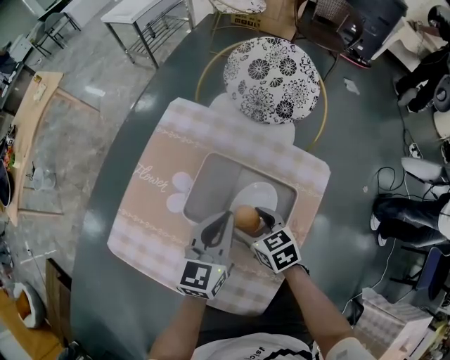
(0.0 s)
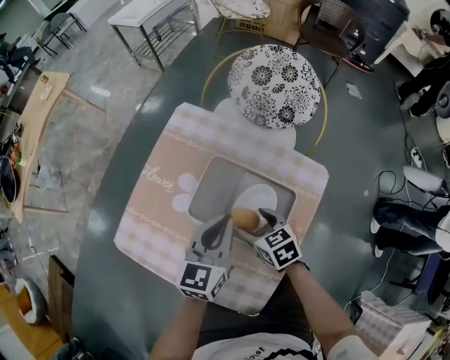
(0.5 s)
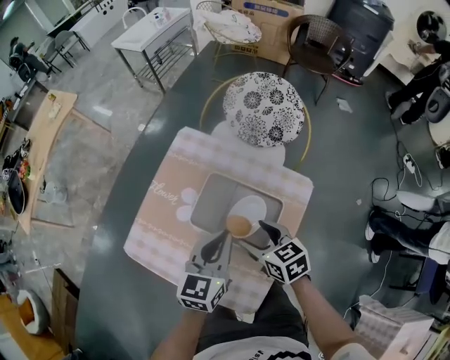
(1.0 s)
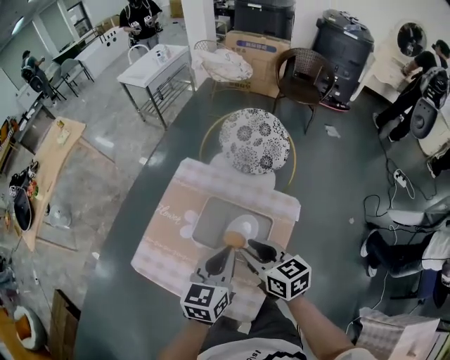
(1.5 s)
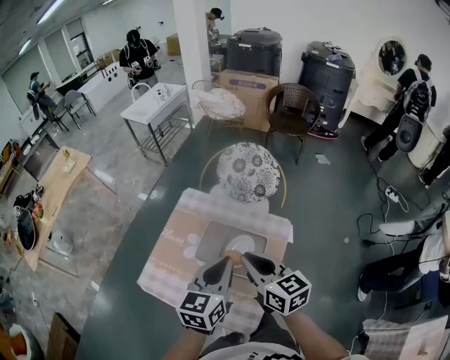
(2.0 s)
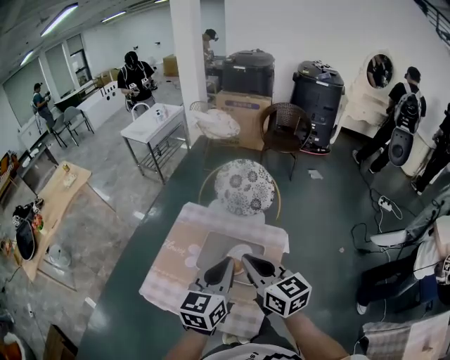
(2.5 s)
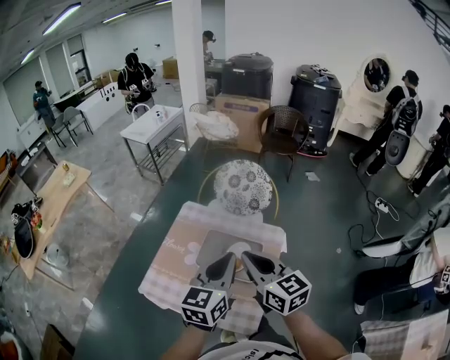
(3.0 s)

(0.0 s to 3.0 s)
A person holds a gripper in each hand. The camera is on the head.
0.0 s - 1.5 s: The grippers both shift upward by roughly 20 cm. The right gripper swivels about 20 degrees, and closes its fingers.
1.5 s - 3.0 s: The grippers both shift upward by some 15 cm. The right gripper rotates some 20 degrees, and closes its fingers.

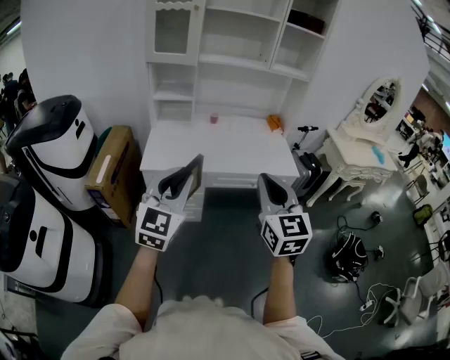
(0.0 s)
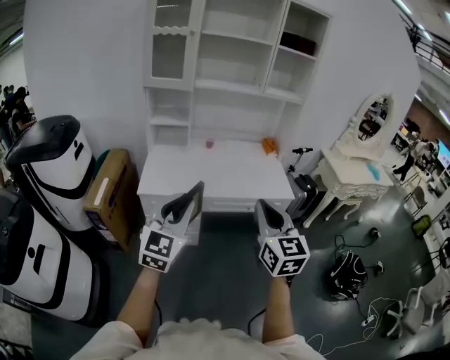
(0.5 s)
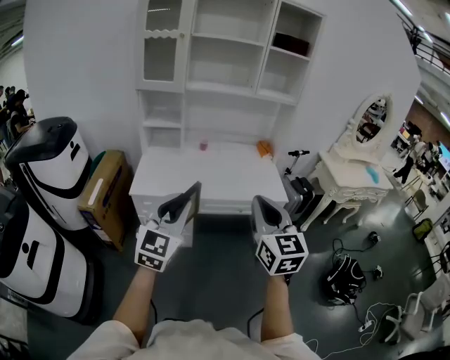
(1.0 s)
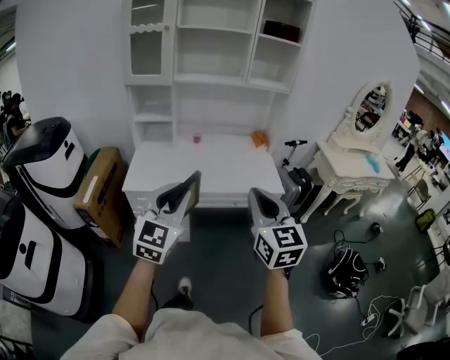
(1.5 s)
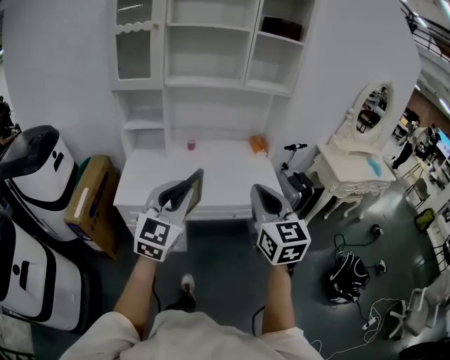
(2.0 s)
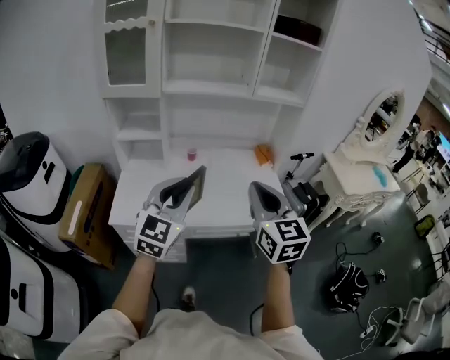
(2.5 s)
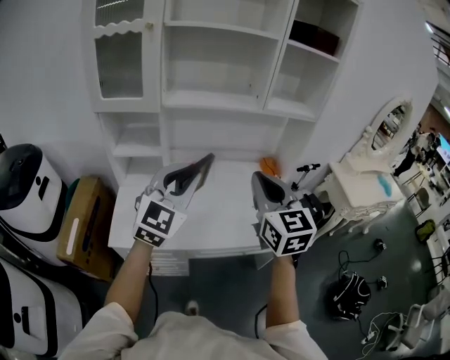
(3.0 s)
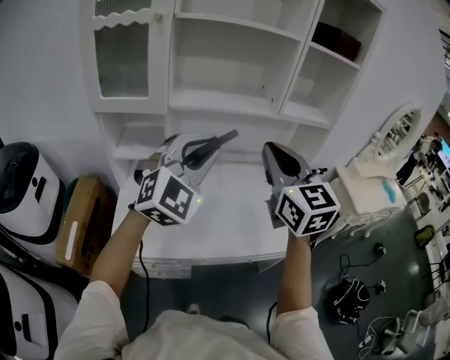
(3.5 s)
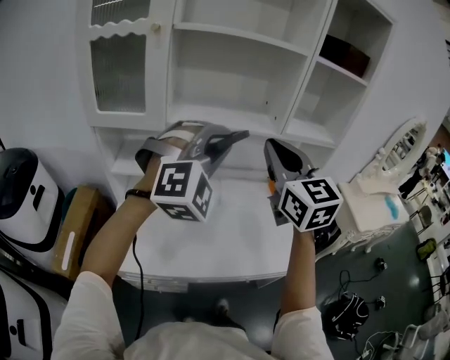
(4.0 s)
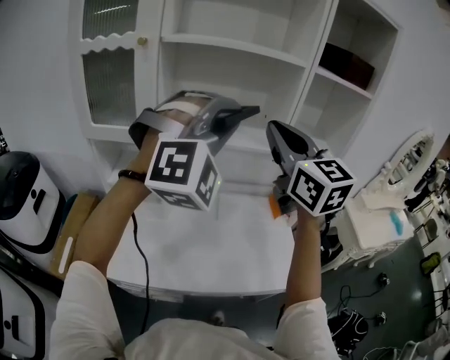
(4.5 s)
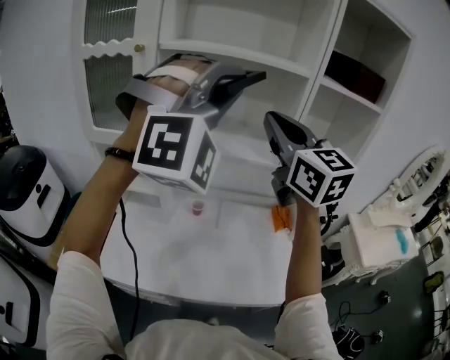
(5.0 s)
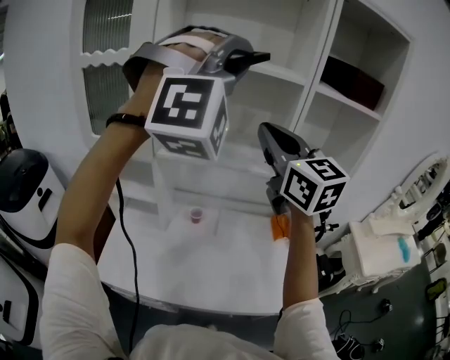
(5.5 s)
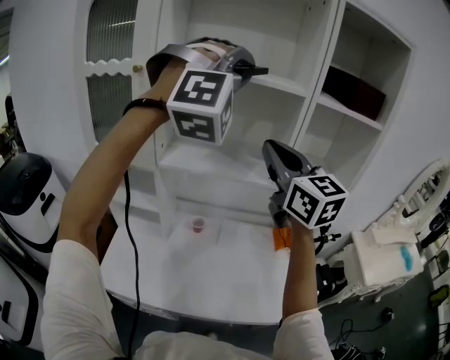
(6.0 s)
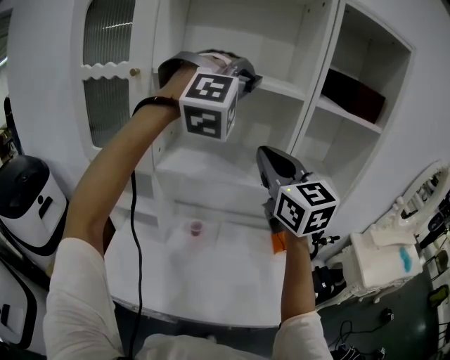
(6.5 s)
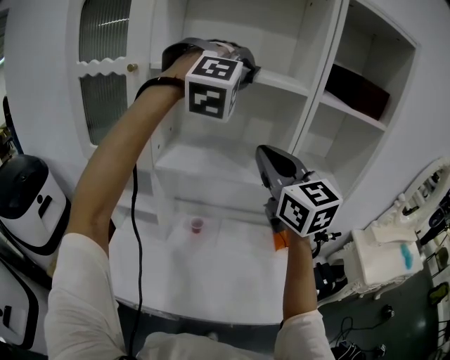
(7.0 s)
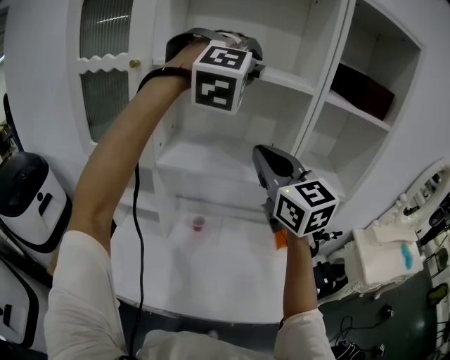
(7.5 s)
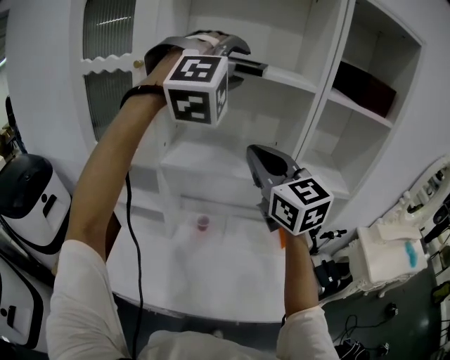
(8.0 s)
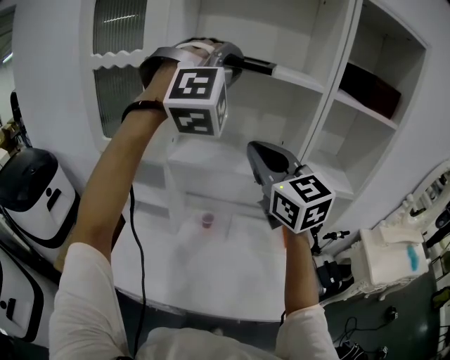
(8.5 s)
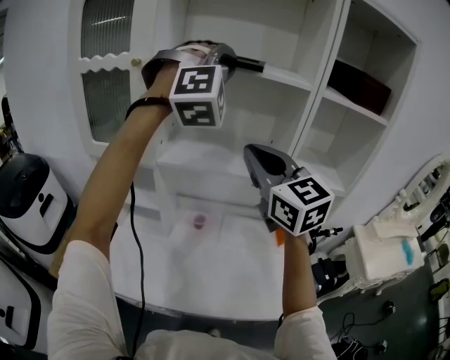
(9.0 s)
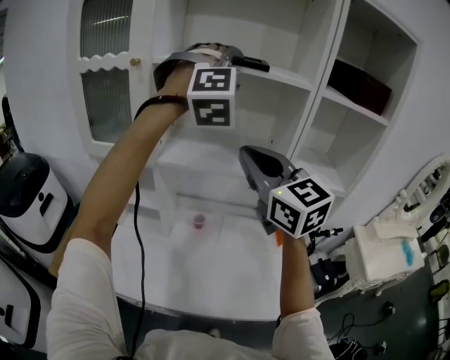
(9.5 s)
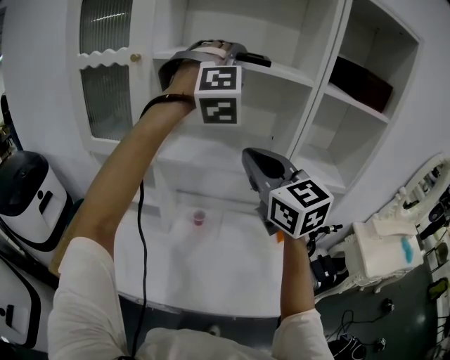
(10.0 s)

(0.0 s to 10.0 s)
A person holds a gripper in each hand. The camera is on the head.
0.0 s - 2.0 s: Both grippers move forward and to the right, about 20 cm.
2.0 s - 4.0 s: Both grippers are carried forward, about 40 cm. The left gripper rotates around the line of its fingers by roughly 50 degrees, clockwise from behind.
4.0 s - 6.0 s: The right gripper is displaced forward, upward and to the right by some 15 cm, while the left gripper shifts about 25 cm upward and forward, and swivels about 30 degrees.
6.0 s - 8.0 s: The left gripper ends up approximately 5 cm from where it was, and opens. The right gripper moves to the left, roughly 5 cm.
8.0 s - 10.0 s: The left gripper moves some 5 cm, and closes and opens again.

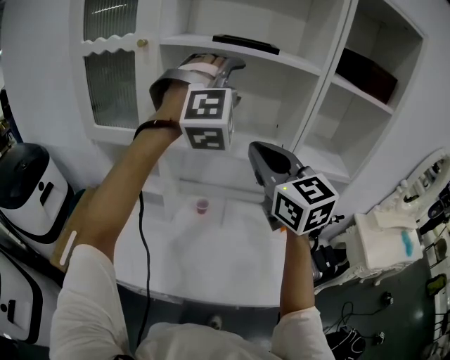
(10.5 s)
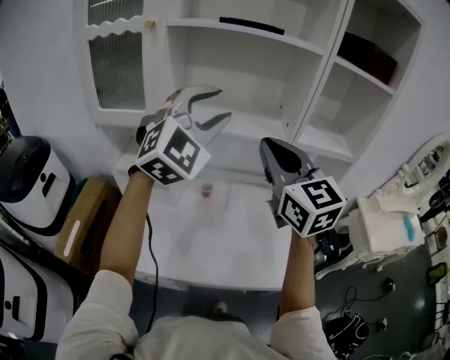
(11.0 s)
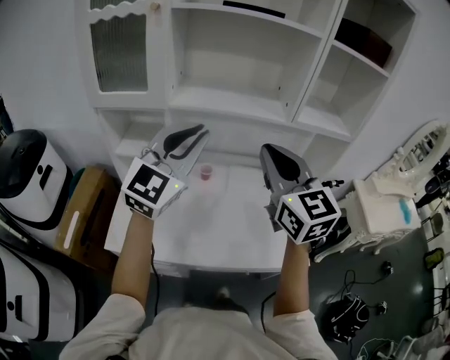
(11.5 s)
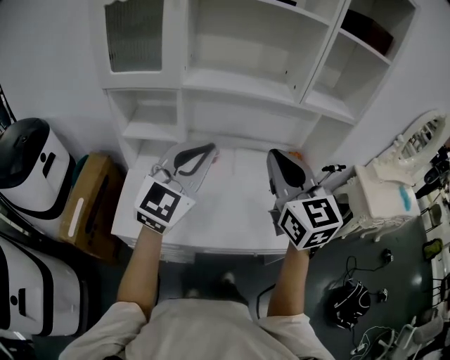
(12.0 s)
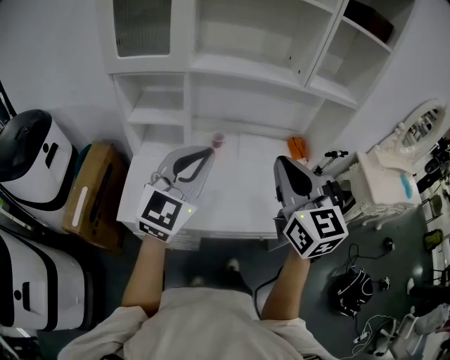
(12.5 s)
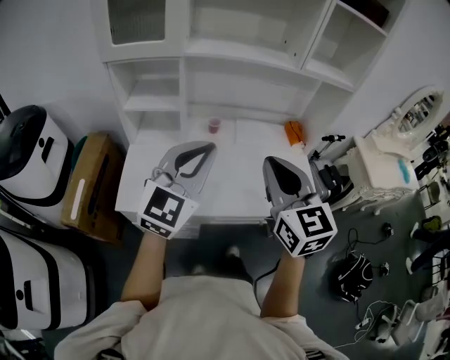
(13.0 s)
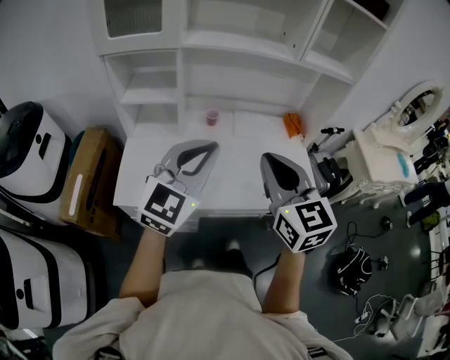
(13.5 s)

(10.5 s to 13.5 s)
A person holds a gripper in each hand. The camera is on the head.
10.5 s - 12.0 s: The left gripper moves backward, downward and to the left, about 35 cm, twists roughly 60 degrees counterclockwise, seen from behind, and closes. The right gripper is displaced backward and downward by approximately 20 cm.
12.0 s - 13.5 s: Both grippers travel together backward and downward, approximately 10 cm.

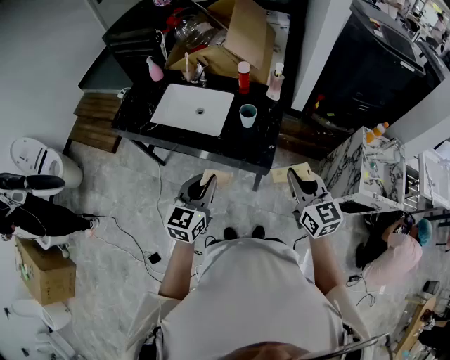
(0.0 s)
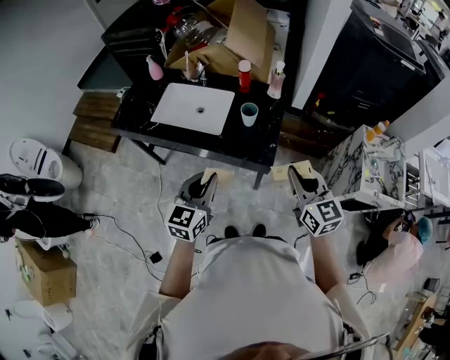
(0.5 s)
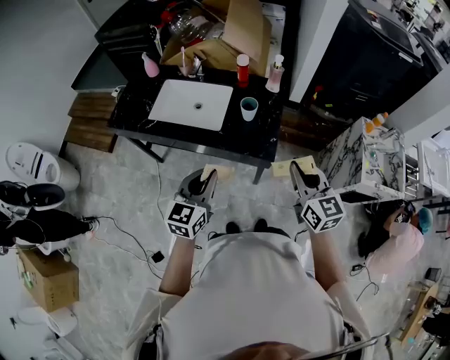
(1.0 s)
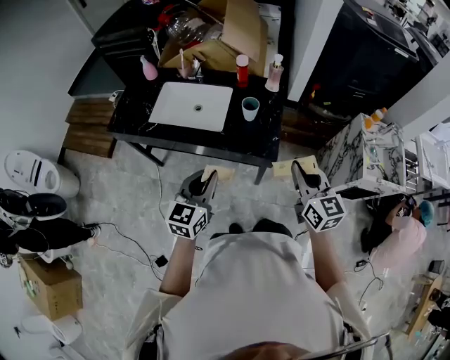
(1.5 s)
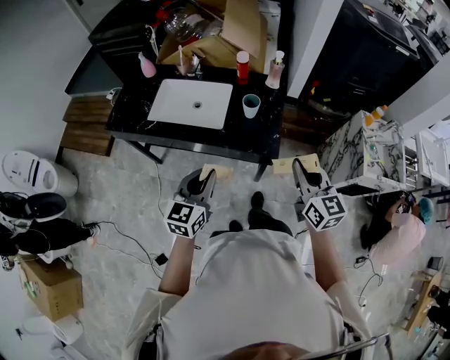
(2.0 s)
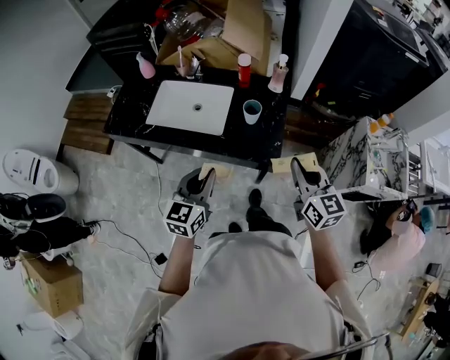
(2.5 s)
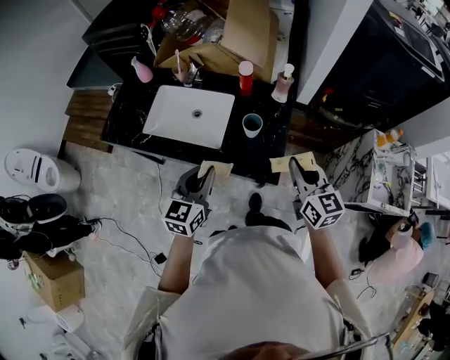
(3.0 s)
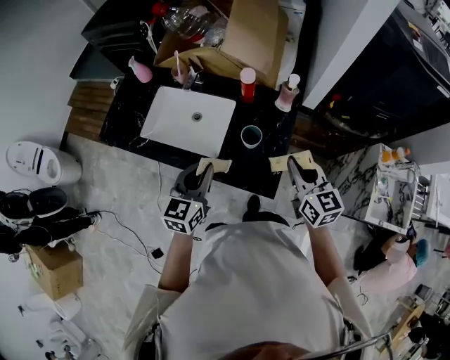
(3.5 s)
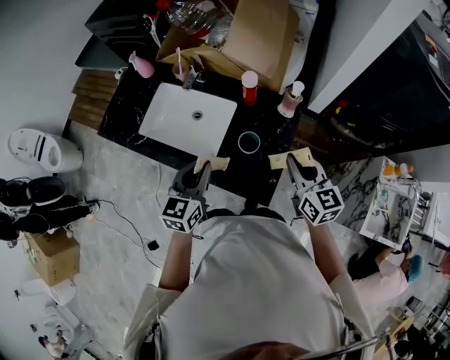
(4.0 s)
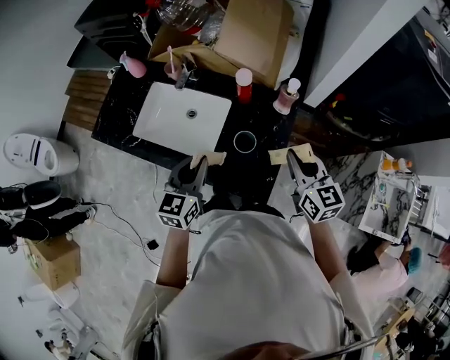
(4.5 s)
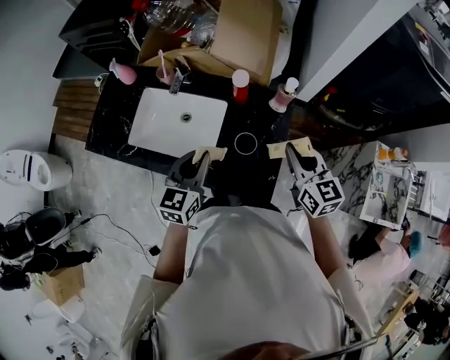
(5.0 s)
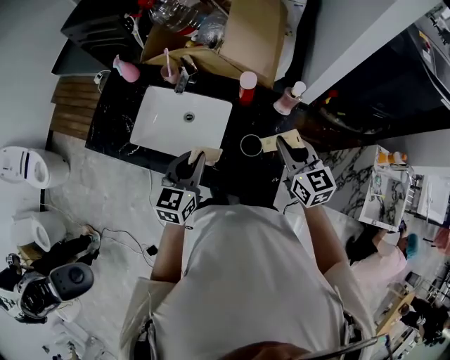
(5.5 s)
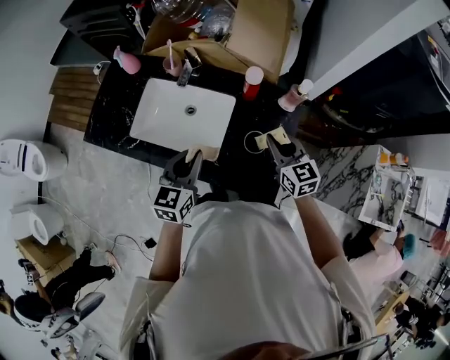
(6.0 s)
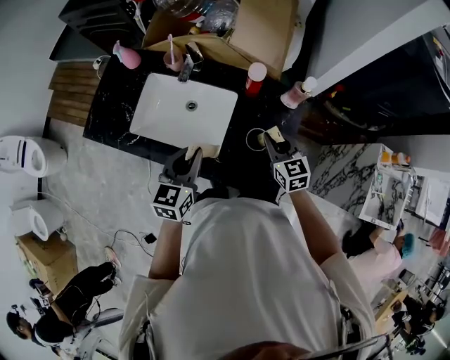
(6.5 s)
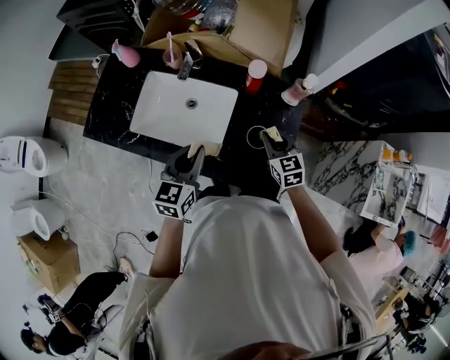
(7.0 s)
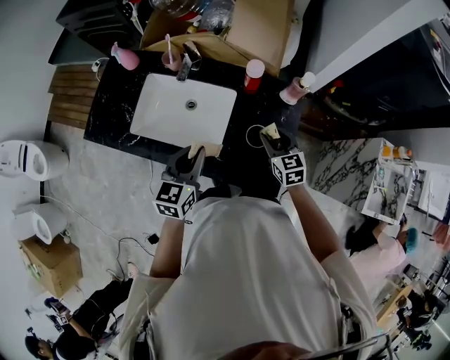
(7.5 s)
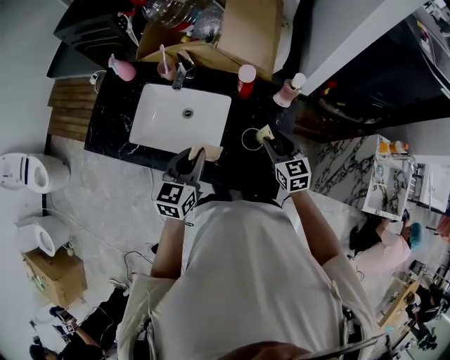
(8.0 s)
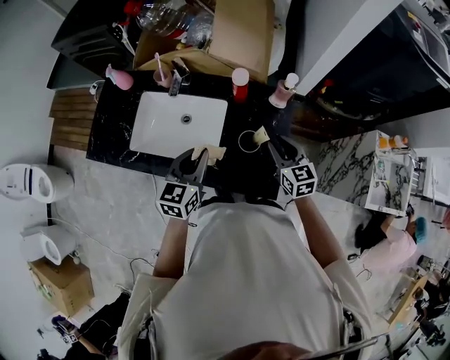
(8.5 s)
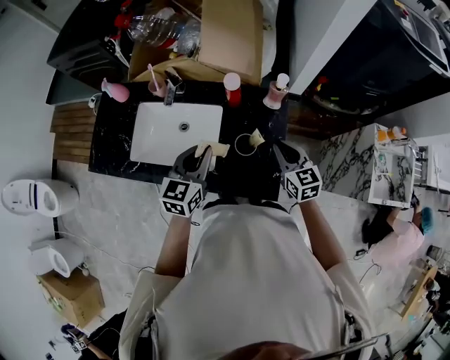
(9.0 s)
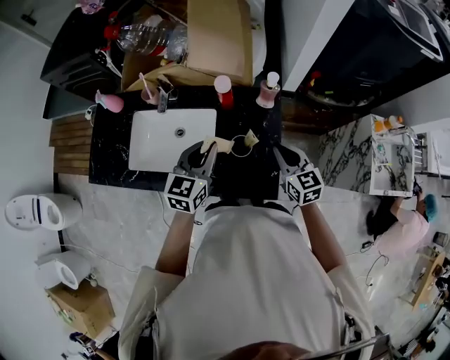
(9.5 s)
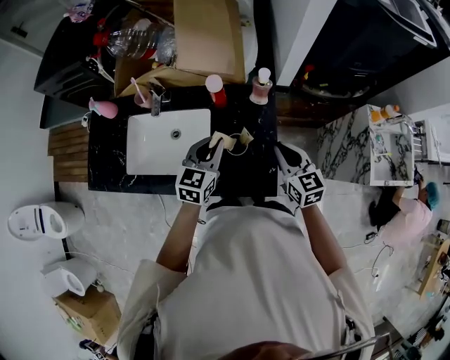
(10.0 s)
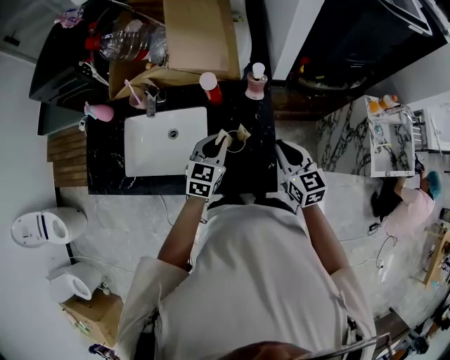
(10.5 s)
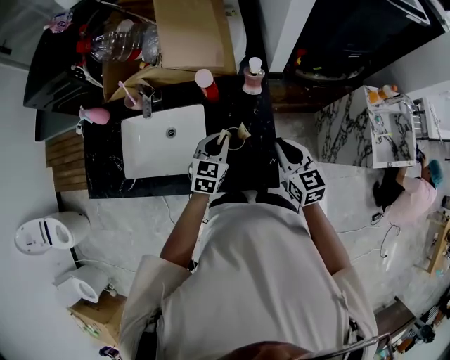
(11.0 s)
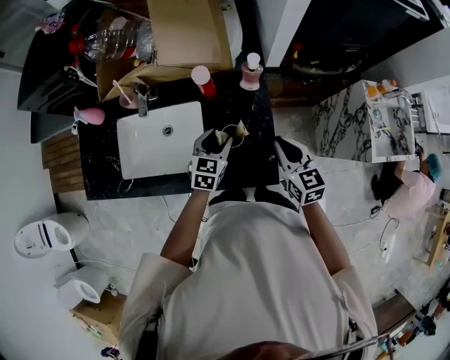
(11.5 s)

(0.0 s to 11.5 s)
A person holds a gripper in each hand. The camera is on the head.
0.0 s - 2.0 s: The left gripper is displaced to the left by about 5 cm.
2.0 s - 4.0 s: Both grippers move forward, about 30 cm.
4.0 s - 6.0 s: The right gripper goes about 15 cm to the left, forward and downward; the left gripper heads forward and to the left, covering about 10 cm.
6.0 s - 7.5 s: The right gripper travels downward by some 10 cm, and opens its fingers.
7.5 s - 9.5 s: The right gripper goes some 10 cm to the right and upward, and closes. Meanwhile the left gripper travels to the right and forward by about 10 cm.
9.5 s - 11.5 s: The left gripper moves downward, approximately 15 cm, and opens up.
